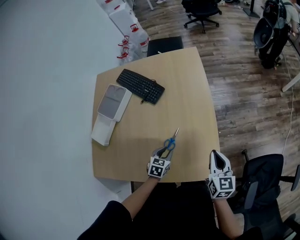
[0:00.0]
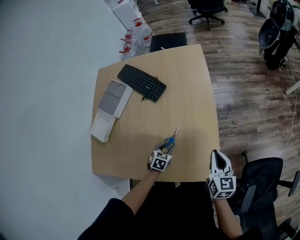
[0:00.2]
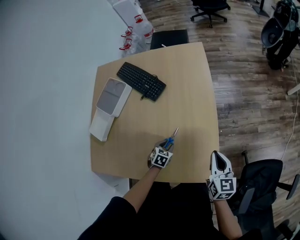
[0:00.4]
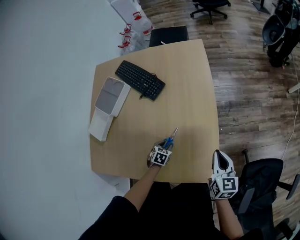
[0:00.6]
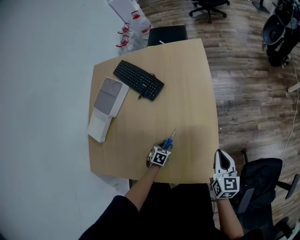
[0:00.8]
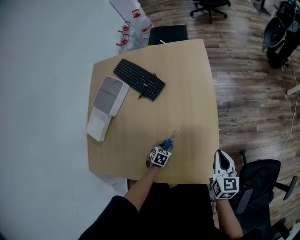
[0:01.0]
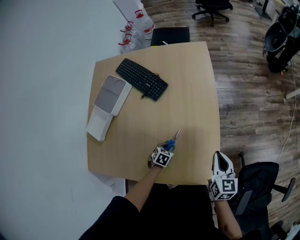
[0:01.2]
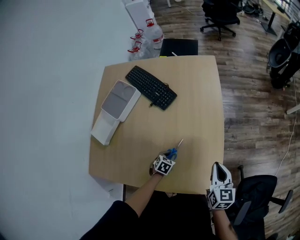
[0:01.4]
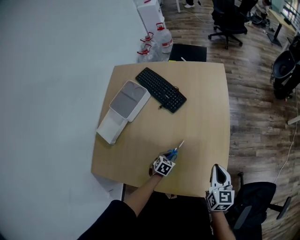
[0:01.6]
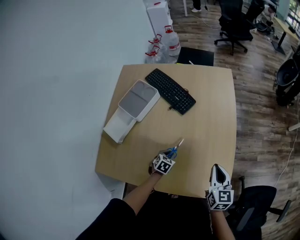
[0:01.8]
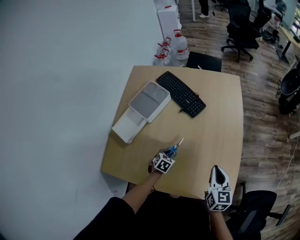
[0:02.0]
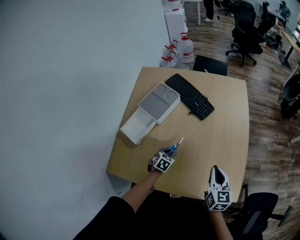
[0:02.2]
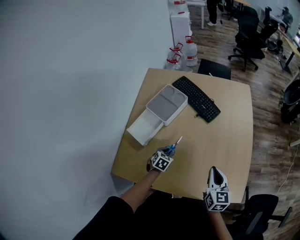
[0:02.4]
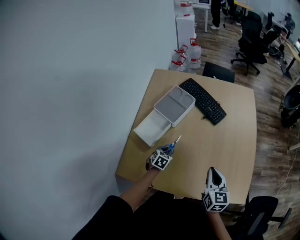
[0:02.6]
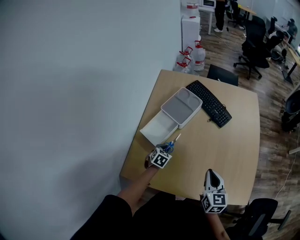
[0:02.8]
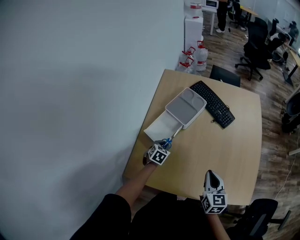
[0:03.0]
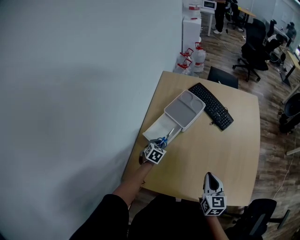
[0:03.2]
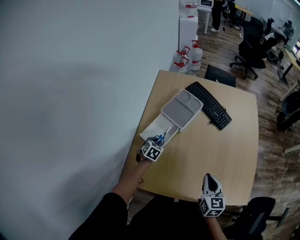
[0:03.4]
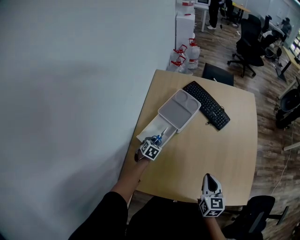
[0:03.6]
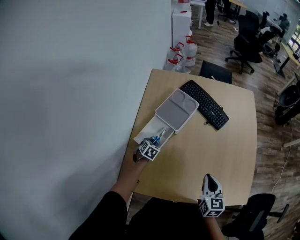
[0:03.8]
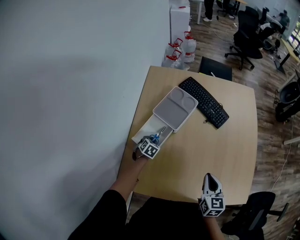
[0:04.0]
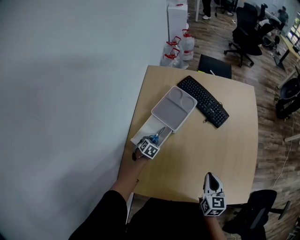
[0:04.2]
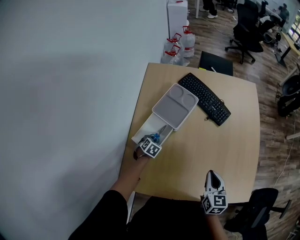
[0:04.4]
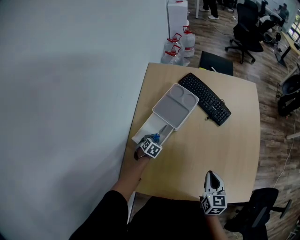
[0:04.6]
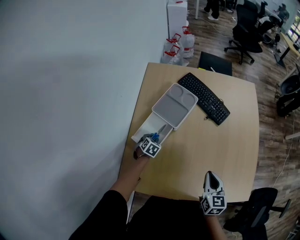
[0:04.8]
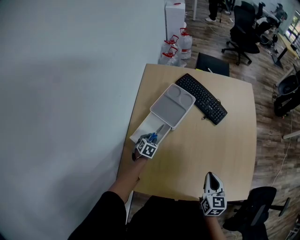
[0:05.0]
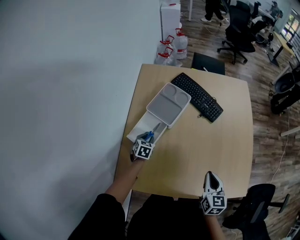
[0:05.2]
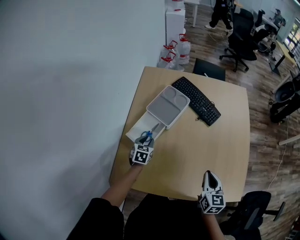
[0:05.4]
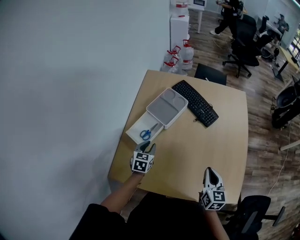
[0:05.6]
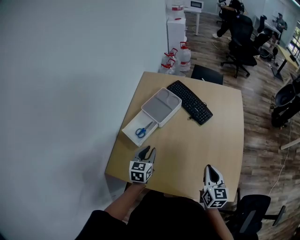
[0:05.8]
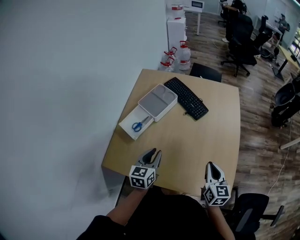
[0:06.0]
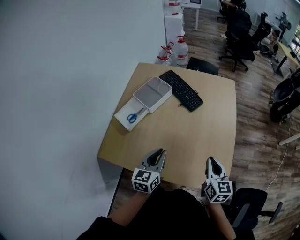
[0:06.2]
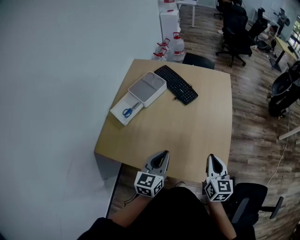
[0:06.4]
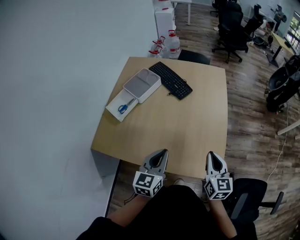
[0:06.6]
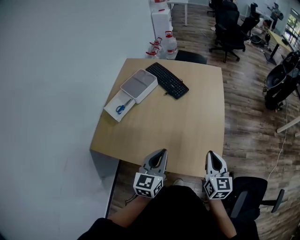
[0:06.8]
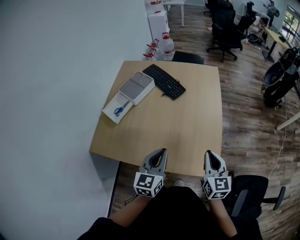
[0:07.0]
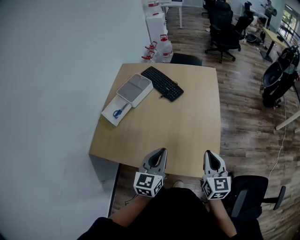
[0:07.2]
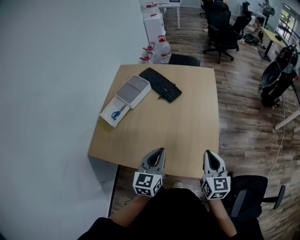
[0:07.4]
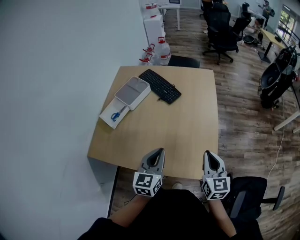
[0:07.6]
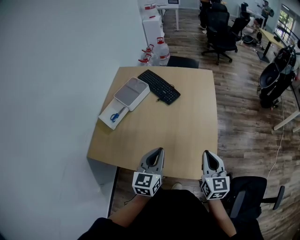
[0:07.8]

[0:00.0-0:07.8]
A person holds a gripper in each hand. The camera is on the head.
0.0 to 1.6 s: The left gripper shifts about 10 cm downward and to the left. The right gripper shifts about 5 cm to the left.
1.6 to 3.2 s: Both grippers travel together to the left, approximately 40 cm.
3.2 to 4.6 s: The left gripper shifts approximately 10 cm downward and forward. The right gripper goes approximately 5 cm forward.
4.6 to 6.2 s: The right gripper is displaced to the right and upward by about 25 cm, while the left gripper shifts about 50 cm upward, to the right and backward, and points its fingers approximately 50 degrees further upward.
6.2 to 7.8 s: Both grippers move to the right, some 10 cm.

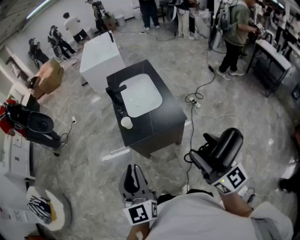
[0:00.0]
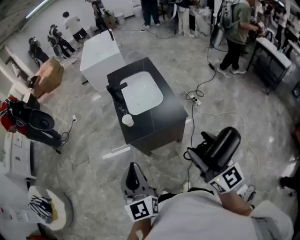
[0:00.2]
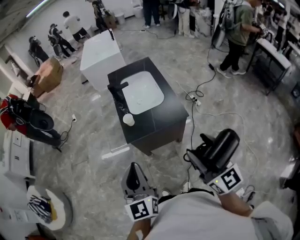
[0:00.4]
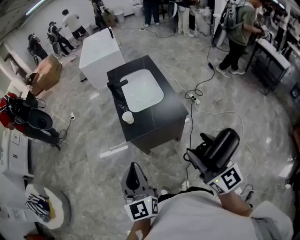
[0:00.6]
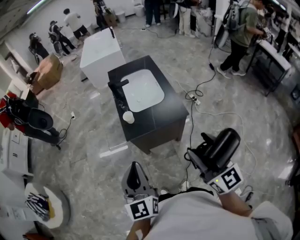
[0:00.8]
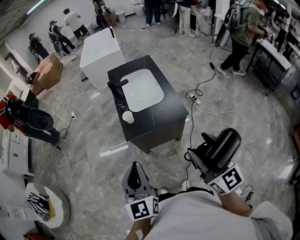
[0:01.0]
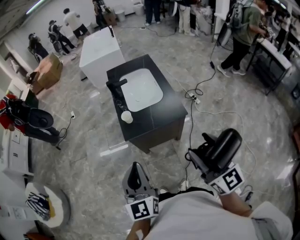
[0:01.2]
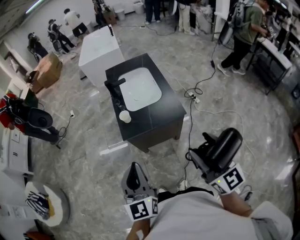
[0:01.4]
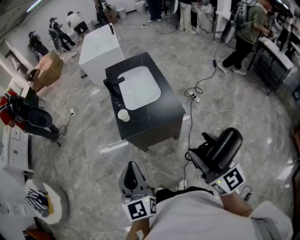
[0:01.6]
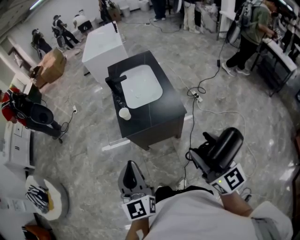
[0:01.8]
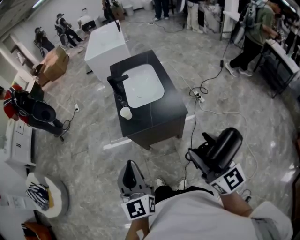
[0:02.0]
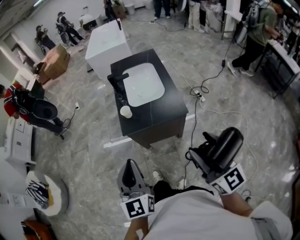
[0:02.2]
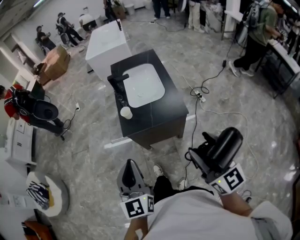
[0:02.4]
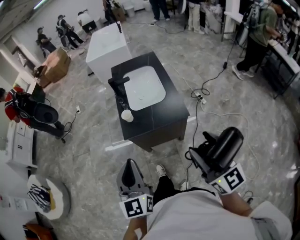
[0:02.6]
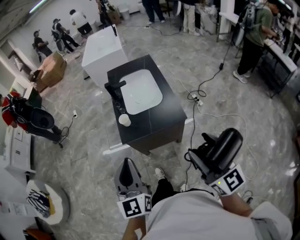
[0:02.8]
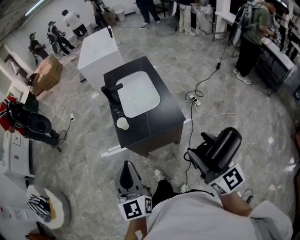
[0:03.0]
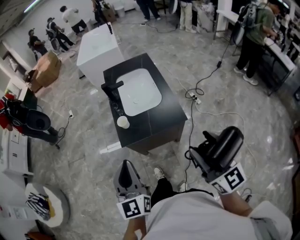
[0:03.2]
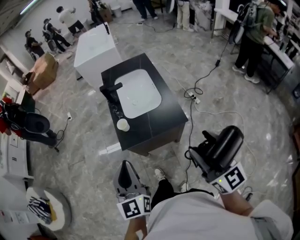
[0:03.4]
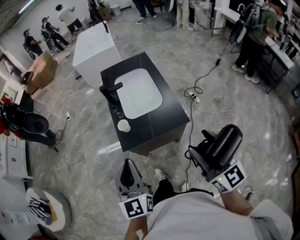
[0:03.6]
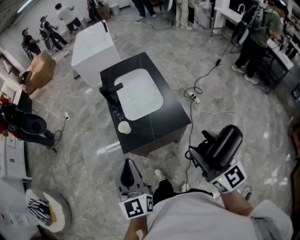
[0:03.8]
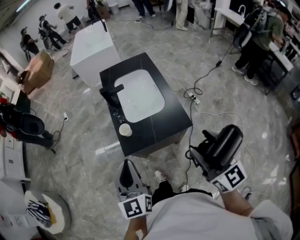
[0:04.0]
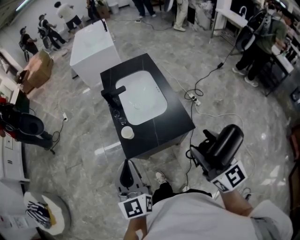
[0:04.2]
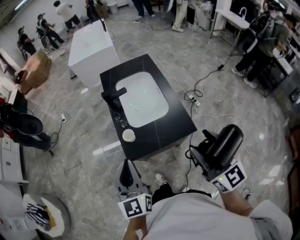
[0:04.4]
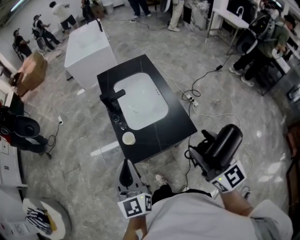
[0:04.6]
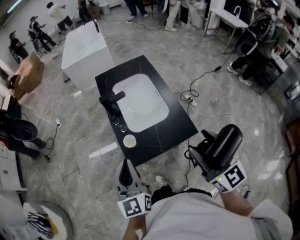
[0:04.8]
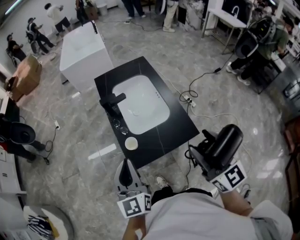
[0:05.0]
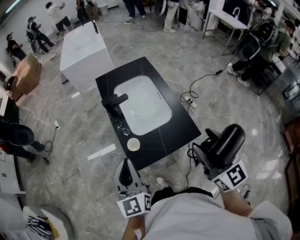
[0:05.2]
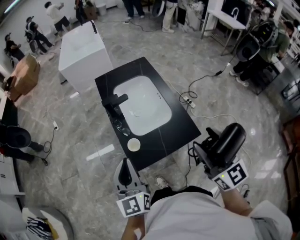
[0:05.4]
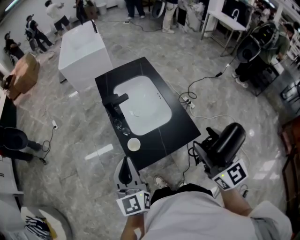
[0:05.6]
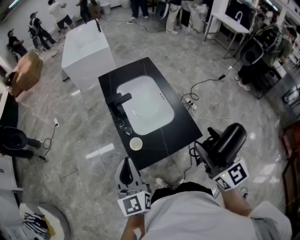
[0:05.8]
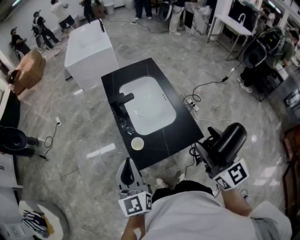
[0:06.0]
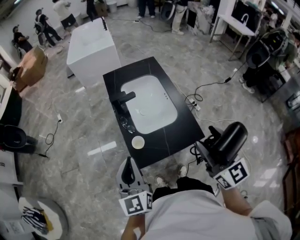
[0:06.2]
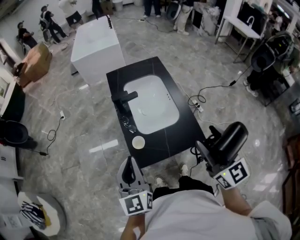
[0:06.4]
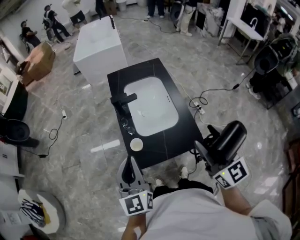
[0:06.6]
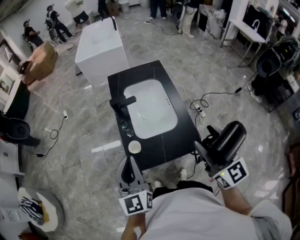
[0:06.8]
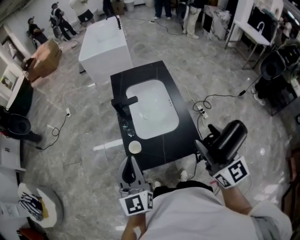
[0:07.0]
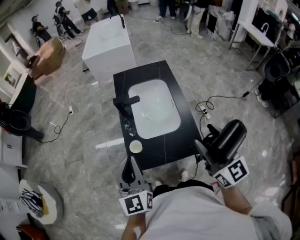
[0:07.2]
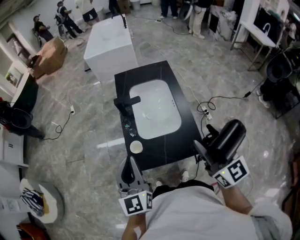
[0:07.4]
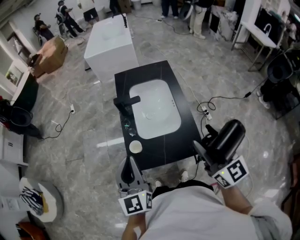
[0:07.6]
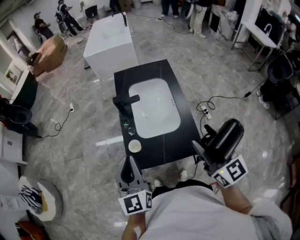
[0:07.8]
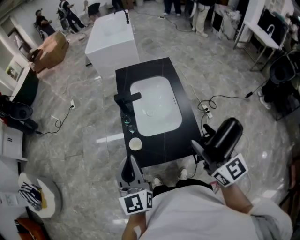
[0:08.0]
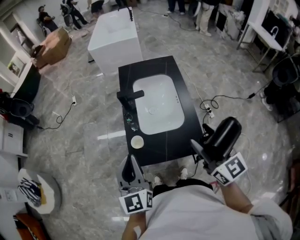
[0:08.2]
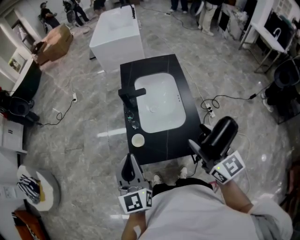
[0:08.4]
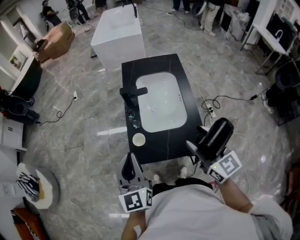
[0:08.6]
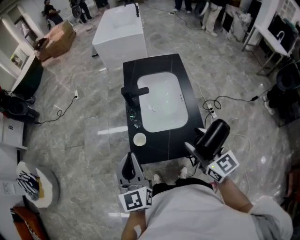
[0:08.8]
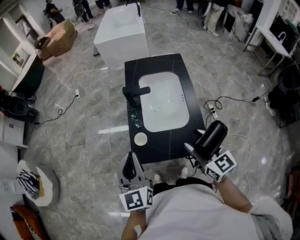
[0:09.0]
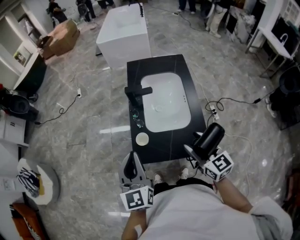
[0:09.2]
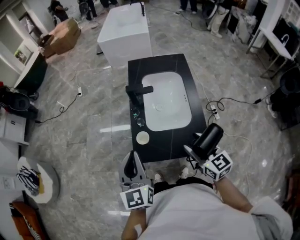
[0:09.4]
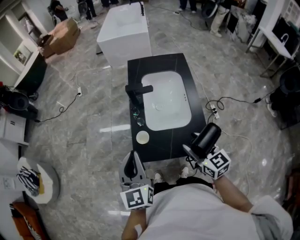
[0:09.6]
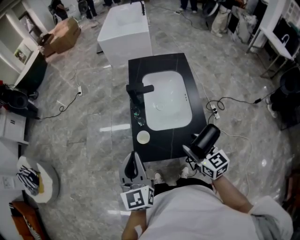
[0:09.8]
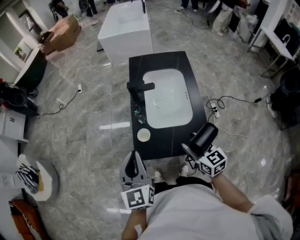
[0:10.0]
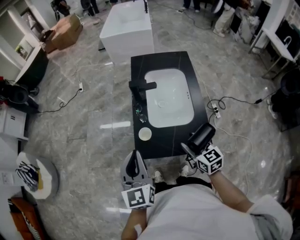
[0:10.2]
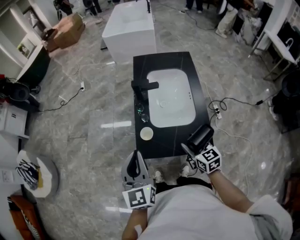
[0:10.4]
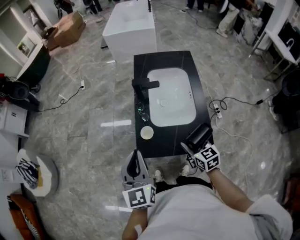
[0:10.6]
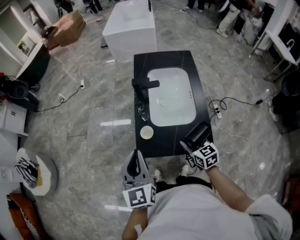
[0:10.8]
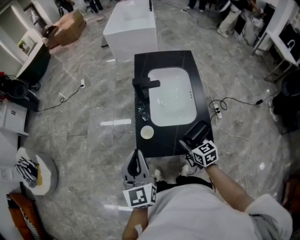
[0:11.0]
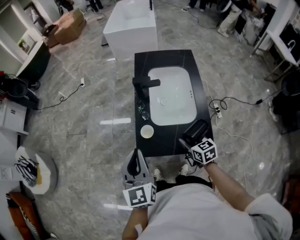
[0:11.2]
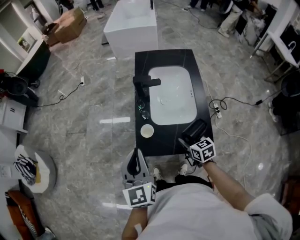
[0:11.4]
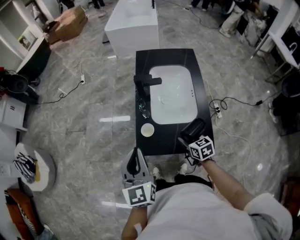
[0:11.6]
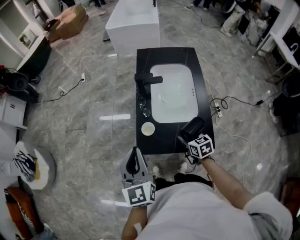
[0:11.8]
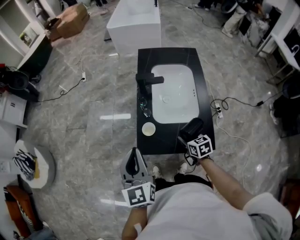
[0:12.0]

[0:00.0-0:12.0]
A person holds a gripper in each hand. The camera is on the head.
0.0 to 1.6 s: There are only small adjustments of the grippers.
1.6 to 3.0 s: The left gripper moves forward, about 5 cm.
3.0 to 4.4 s: Both grippers travel together forward, about 15 cm.
4.4 to 6.0 s: Both grippers move forward, about 5 cm.
6.0 to 7.6 s: The right gripper heads to the right and forward, covering approximately 10 cm; the left gripper goes about 5 cm to the right.
7.6 to 9.0 s: The right gripper travels downward by about 10 cm.
9.0 to 10.4 s: The right gripper moves downward, about 15 cm.
10.4 to 12.0 s: The right gripper goes roughly 10 cm downward.

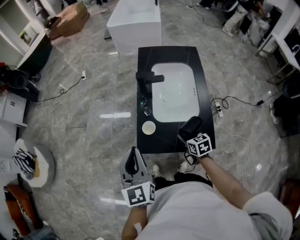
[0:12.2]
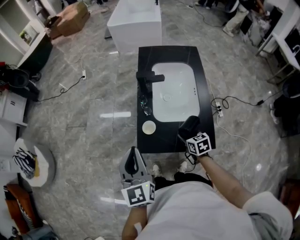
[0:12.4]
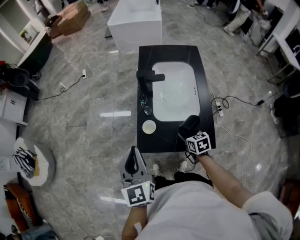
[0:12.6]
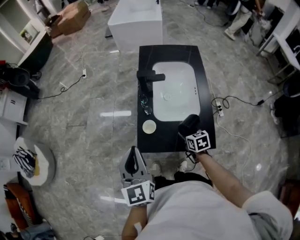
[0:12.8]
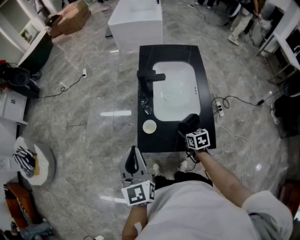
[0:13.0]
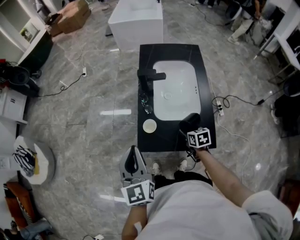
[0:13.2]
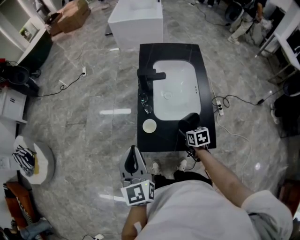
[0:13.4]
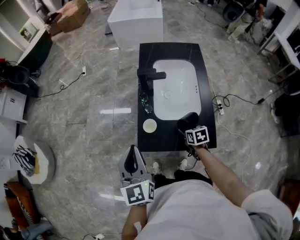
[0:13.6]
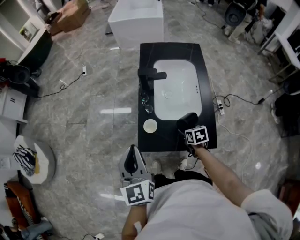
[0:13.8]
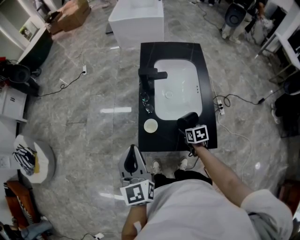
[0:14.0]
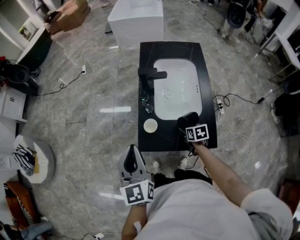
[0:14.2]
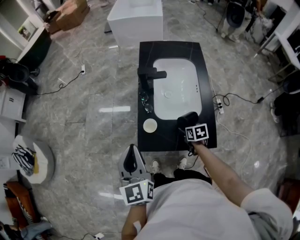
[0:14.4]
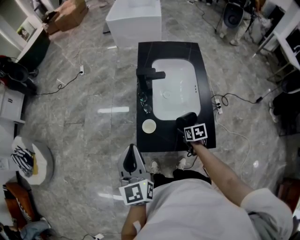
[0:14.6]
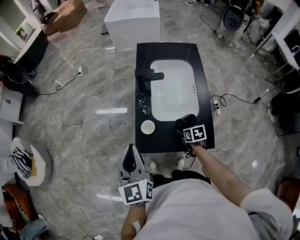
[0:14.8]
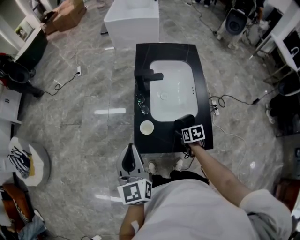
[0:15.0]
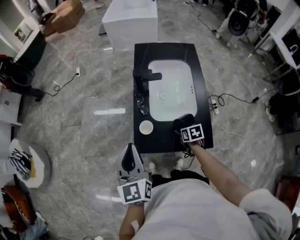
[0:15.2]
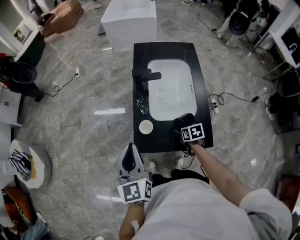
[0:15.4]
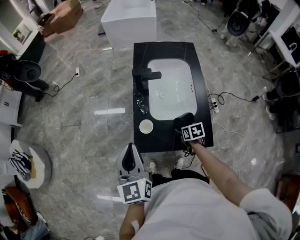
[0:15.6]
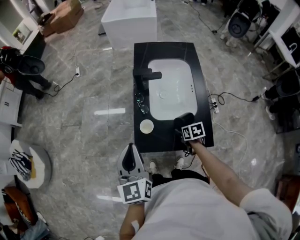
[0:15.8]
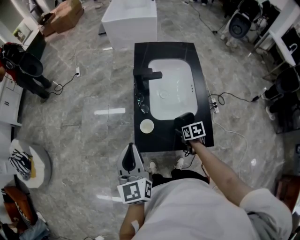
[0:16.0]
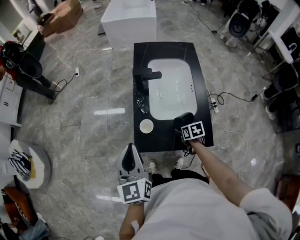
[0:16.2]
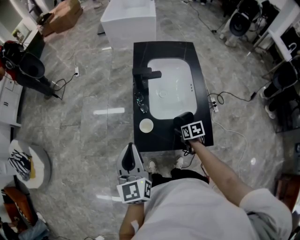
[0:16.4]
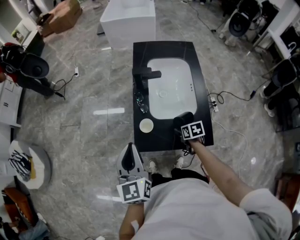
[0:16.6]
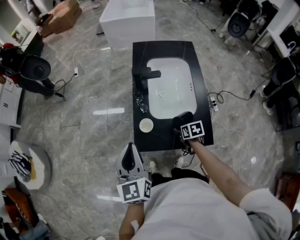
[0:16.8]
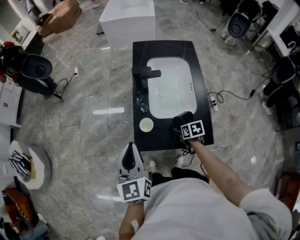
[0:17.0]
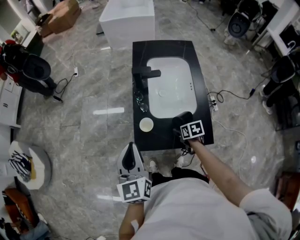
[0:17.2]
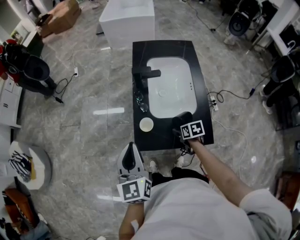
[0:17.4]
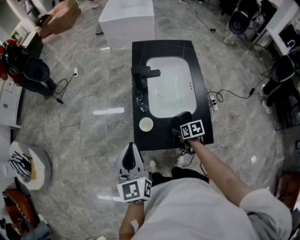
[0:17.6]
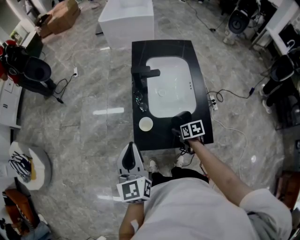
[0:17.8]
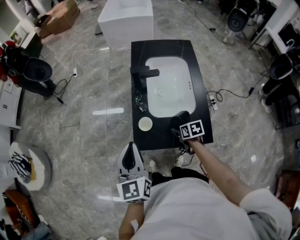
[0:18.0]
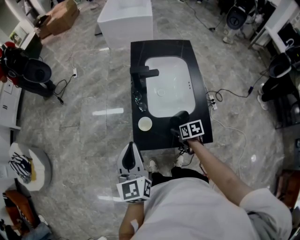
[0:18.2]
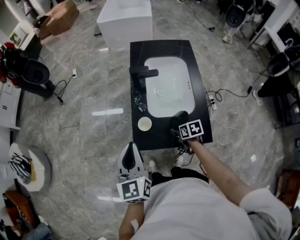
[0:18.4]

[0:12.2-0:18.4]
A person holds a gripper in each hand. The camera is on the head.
12.2 to 13.8 s: The right gripper moves about 5 cm.
13.8 to 15.4 s: The grippers make only small movements.
15.4 to 16.8 s: Both grippers stay put.
16.8 to 18.4 s: The grippers make only small movements.
